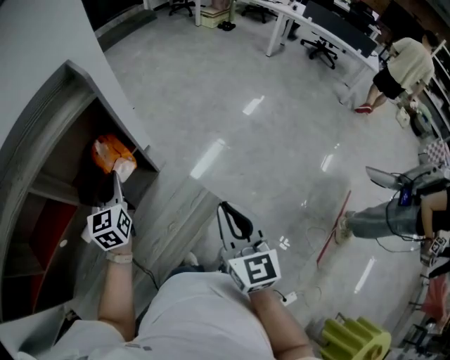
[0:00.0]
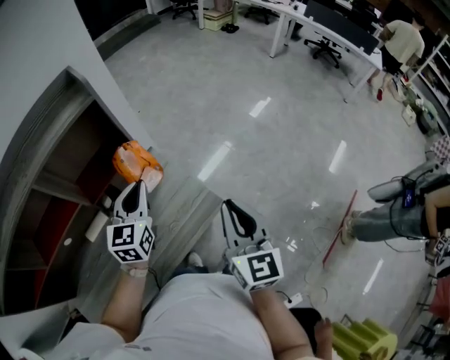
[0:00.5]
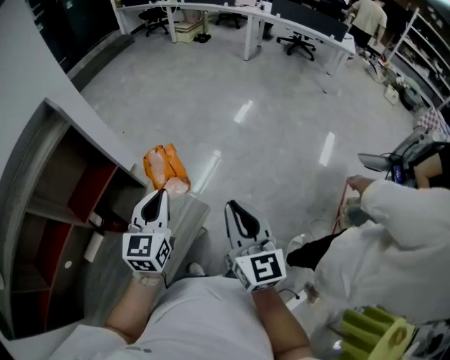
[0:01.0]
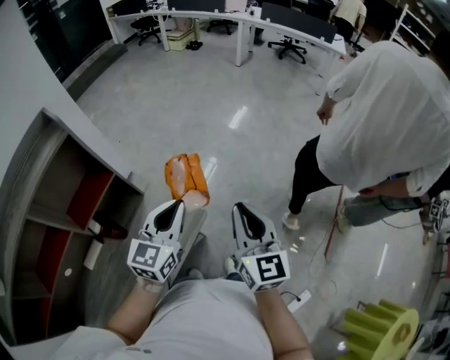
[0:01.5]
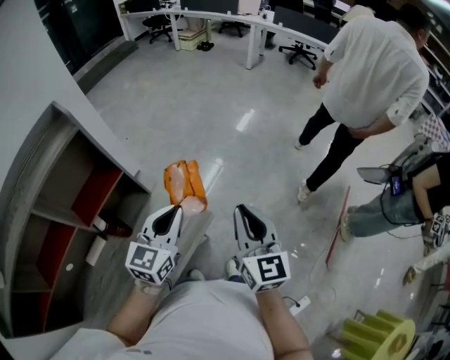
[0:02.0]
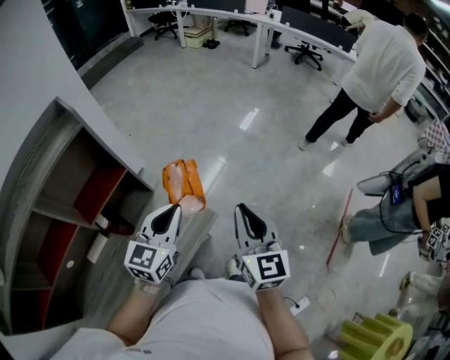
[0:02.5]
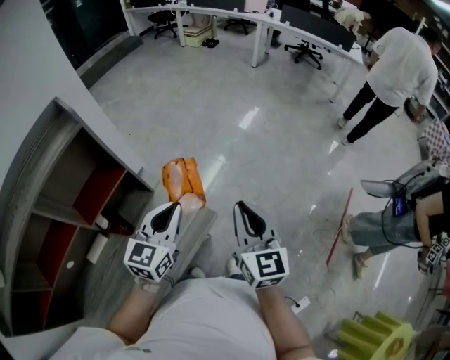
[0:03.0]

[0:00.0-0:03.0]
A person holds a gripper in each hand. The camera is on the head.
0:00.0 to 0:01.5: The left gripper moves some 30 cm, and swivels roughly 40 degrees. Meanwhile the right gripper moves approximately 10 cm.
0:01.5 to 0:03.0: The grippers move only a little.

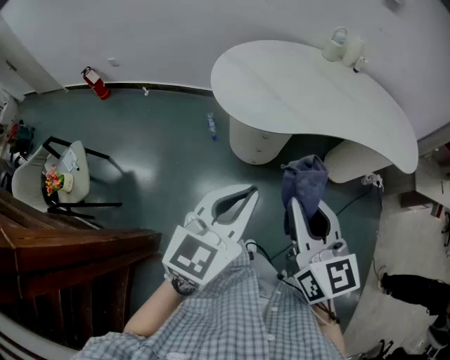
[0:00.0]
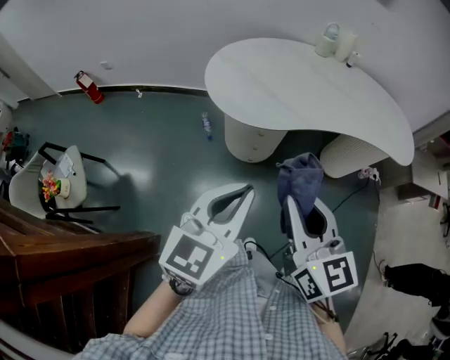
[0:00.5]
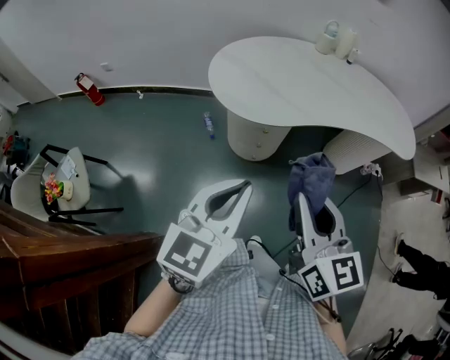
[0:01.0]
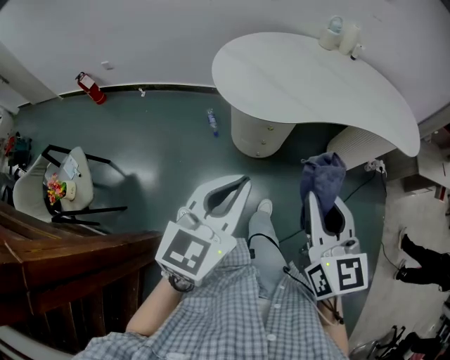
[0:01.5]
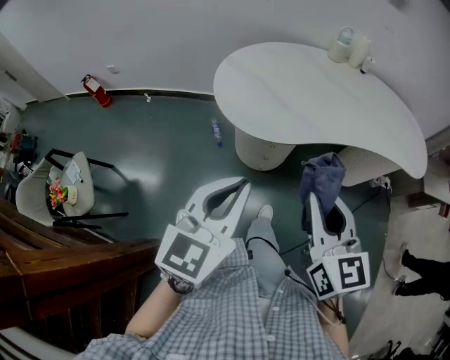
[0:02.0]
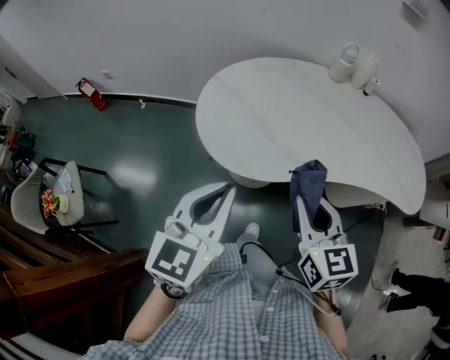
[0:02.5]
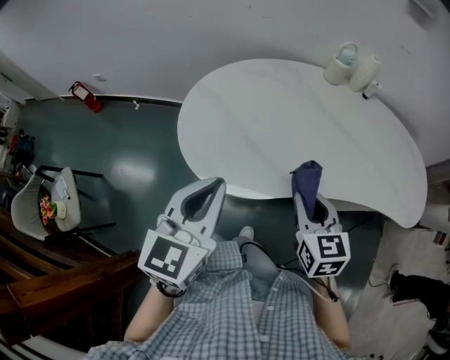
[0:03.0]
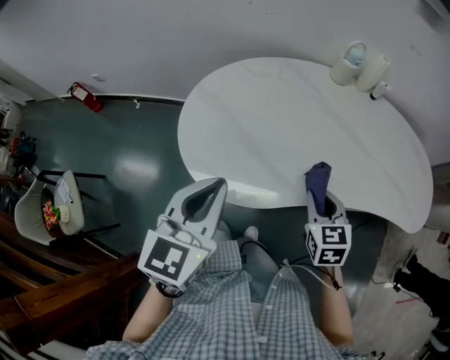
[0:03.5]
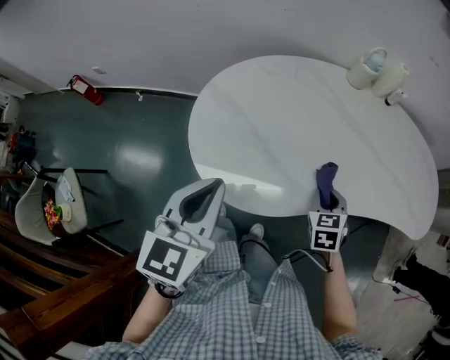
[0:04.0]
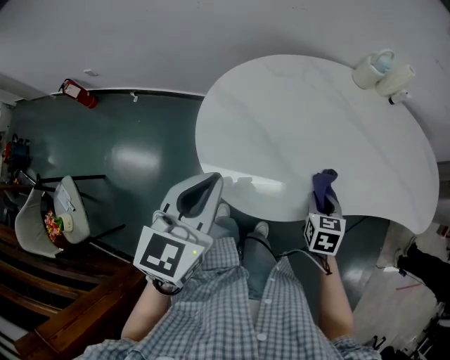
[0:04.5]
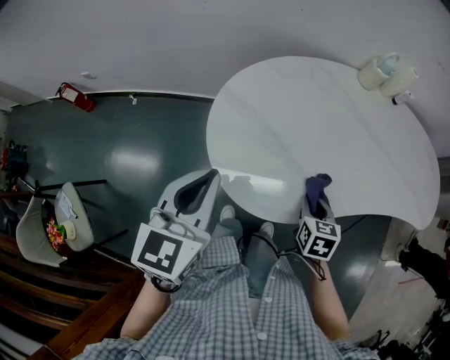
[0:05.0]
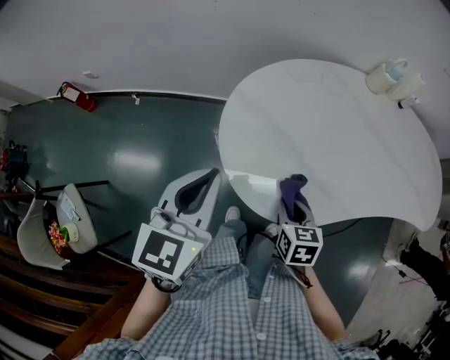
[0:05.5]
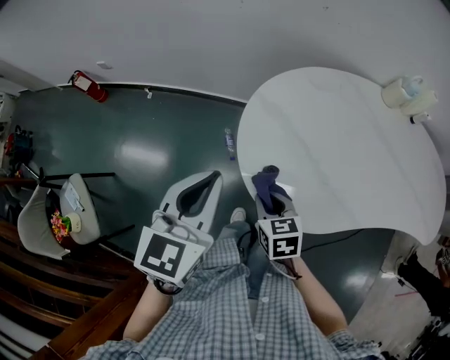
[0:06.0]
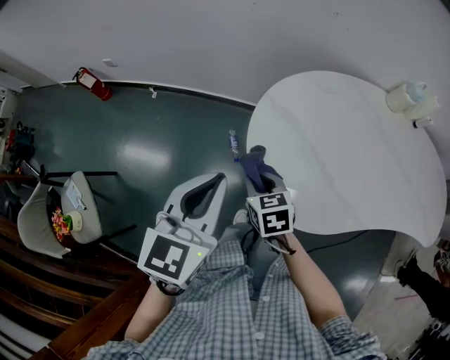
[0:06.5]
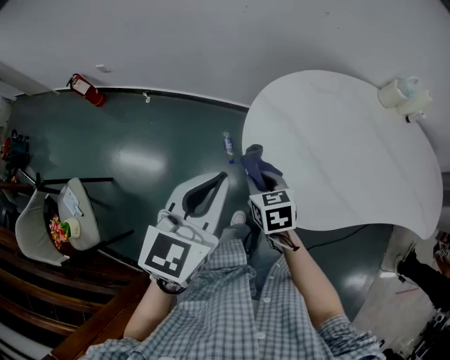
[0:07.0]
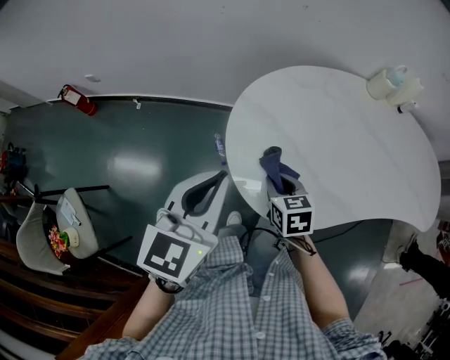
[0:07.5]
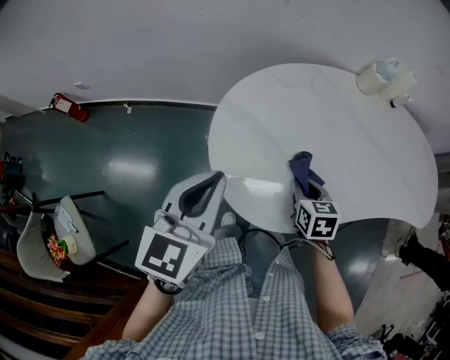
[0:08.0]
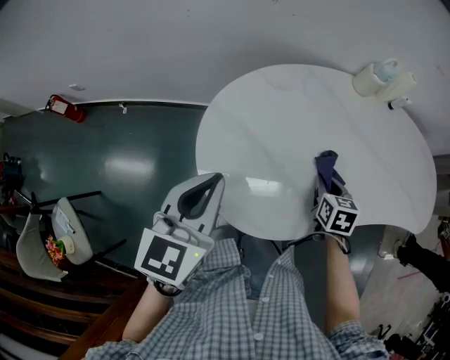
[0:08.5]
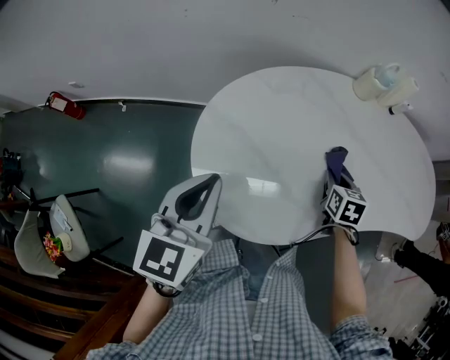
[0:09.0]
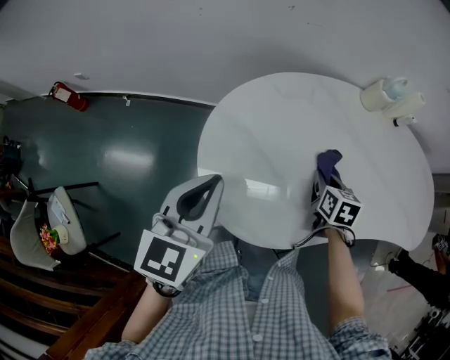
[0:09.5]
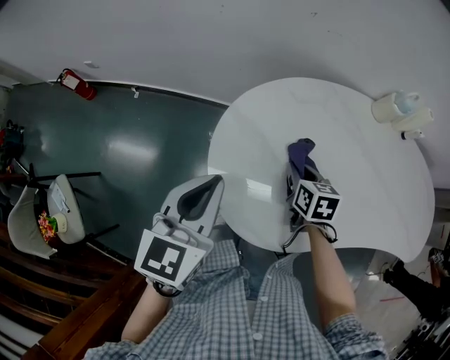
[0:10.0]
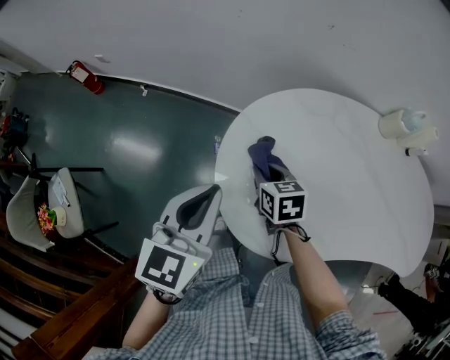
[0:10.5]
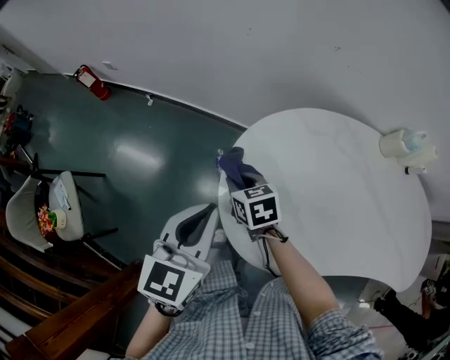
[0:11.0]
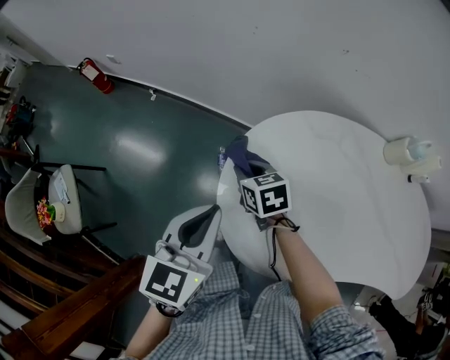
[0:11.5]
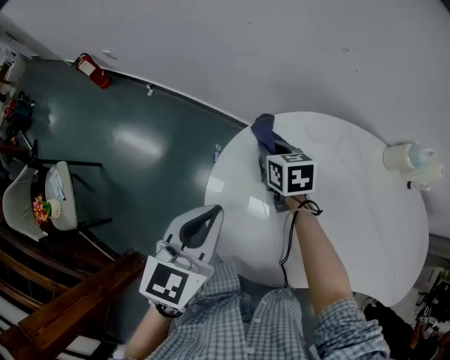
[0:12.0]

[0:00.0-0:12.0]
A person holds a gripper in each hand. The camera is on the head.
0:00.0 to 0:02.0: Both grippers travel together forward, approximately 5 cm.
0:02.0 to 0:04.0: The left gripper goes roughly 25 cm forward. The right gripper travels forward and downward by approximately 40 cm, and tilts its fingers about 40 degrees downward.
0:04.0 to 0:06.0: The right gripper heads to the left, covering approximately 35 cm, and rotates about 30 degrees, while the left gripper shifts roughly 15 cm to the left.
0:06.0 to 0:08.0: The right gripper moves to the right, some 20 cm, while the left gripper moves to the right, some 5 cm.
0:08.0 to 0:10.0: The right gripper heads forward, covering roughly 10 cm, and reaches approximately 15 cm to the right, then returns.
0:10.0 to 0:12.0: The right gripper moves forward and to the left, approximately 20 cm, and swivels some 20 degrees.

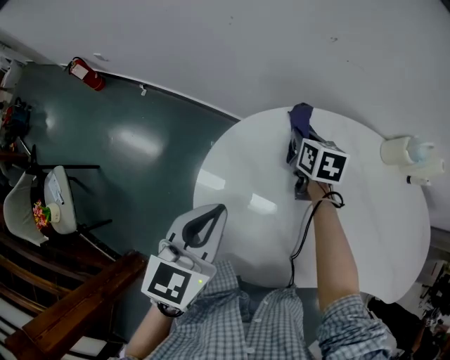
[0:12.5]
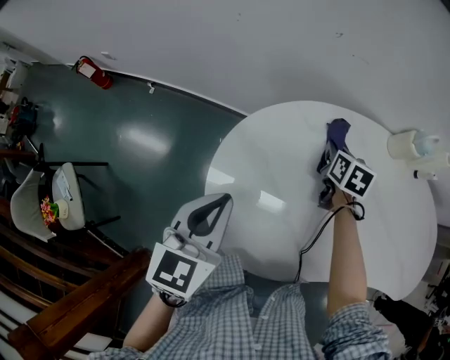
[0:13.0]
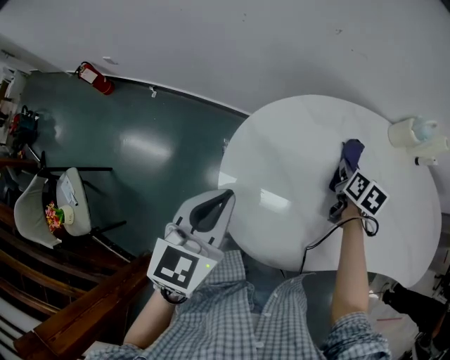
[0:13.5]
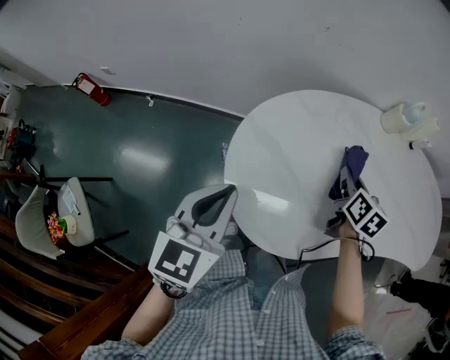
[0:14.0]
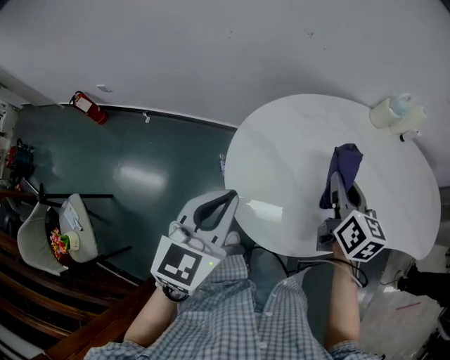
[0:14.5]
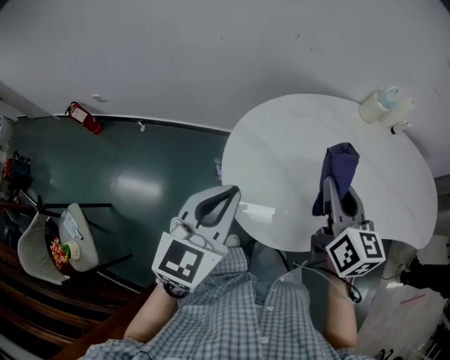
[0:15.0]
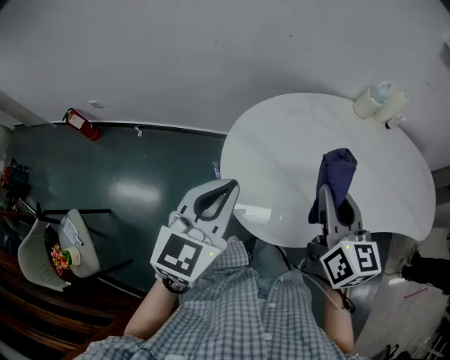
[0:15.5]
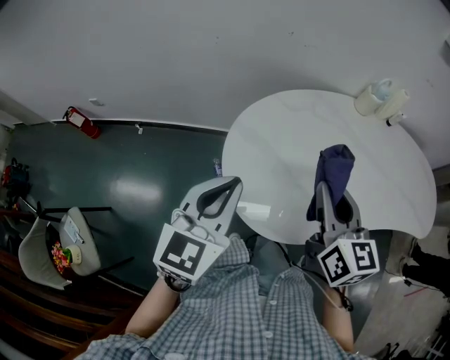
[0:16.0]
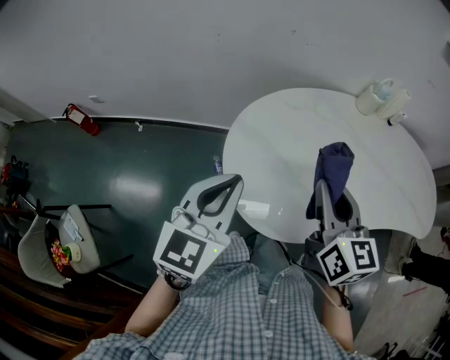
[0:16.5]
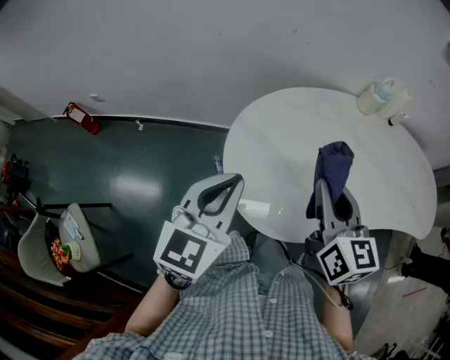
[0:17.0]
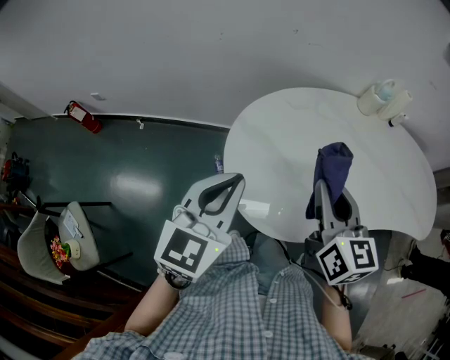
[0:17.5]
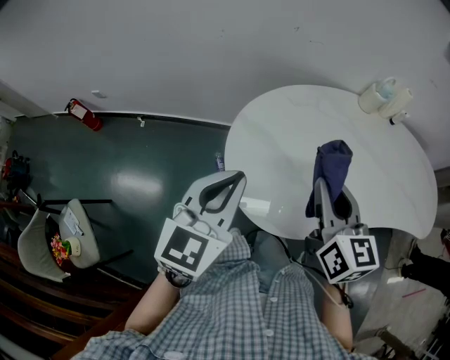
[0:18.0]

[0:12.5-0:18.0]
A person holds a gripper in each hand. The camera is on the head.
0:12.5 to 0:14.5: The left gripper is displaced backward by some 10 cm, while the right gripper moves backward and upward, roughly 25 cm, and rotates about 30 degrees.
0:14.5 to 0:16.0: The right gripper travels backward and upward by about 10 cm.
0:16.0 to 0:18.0: Both grippers stay put.

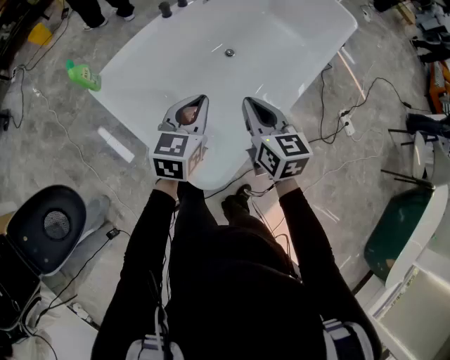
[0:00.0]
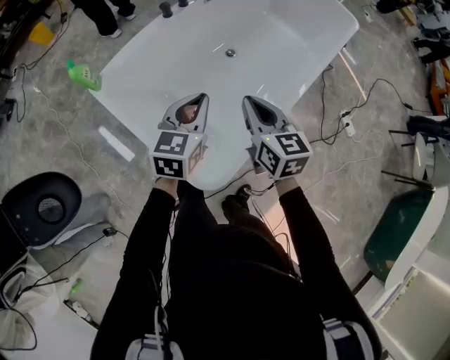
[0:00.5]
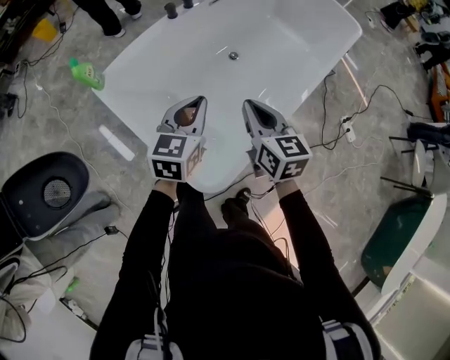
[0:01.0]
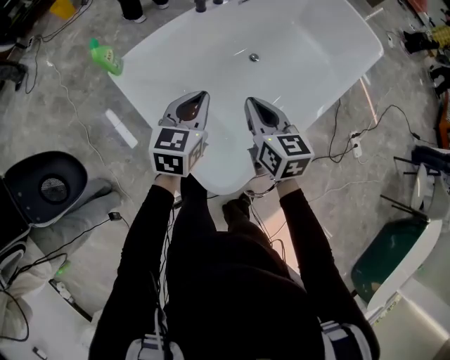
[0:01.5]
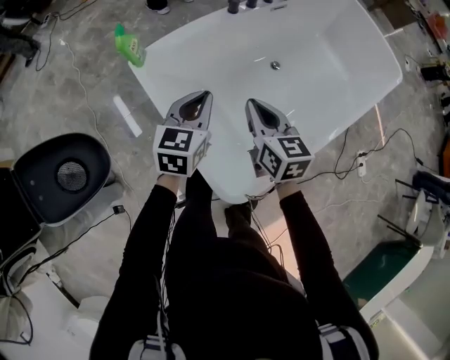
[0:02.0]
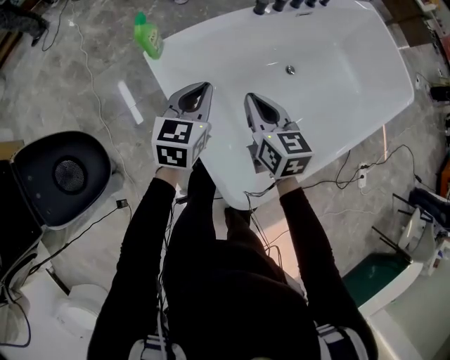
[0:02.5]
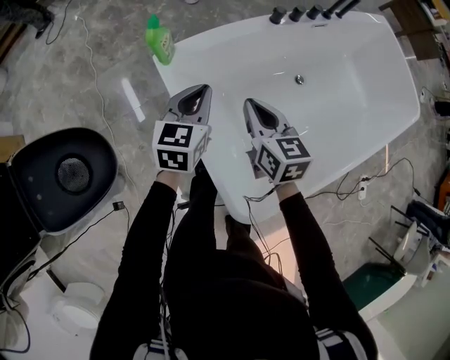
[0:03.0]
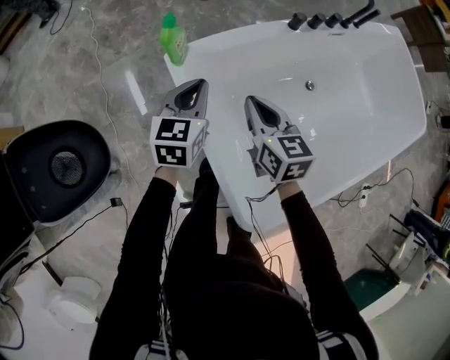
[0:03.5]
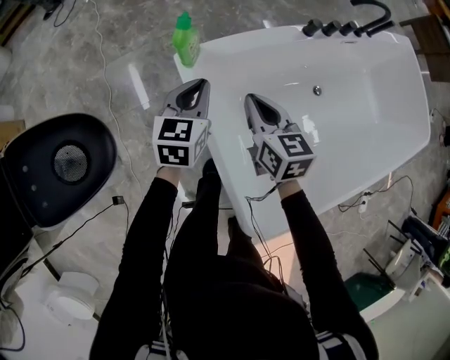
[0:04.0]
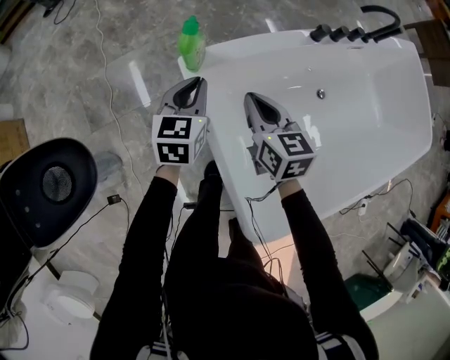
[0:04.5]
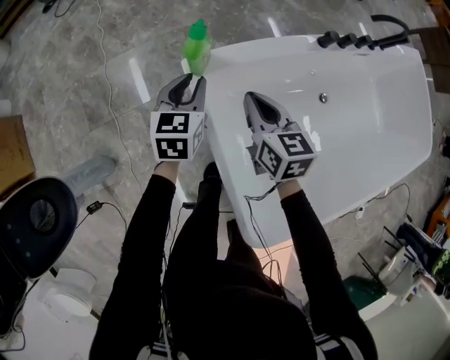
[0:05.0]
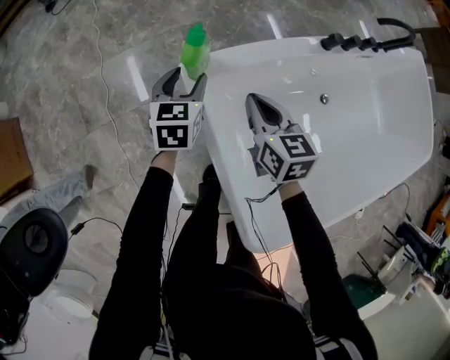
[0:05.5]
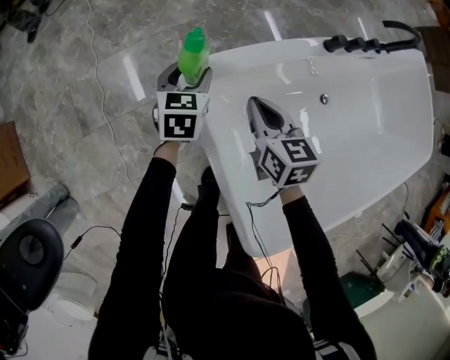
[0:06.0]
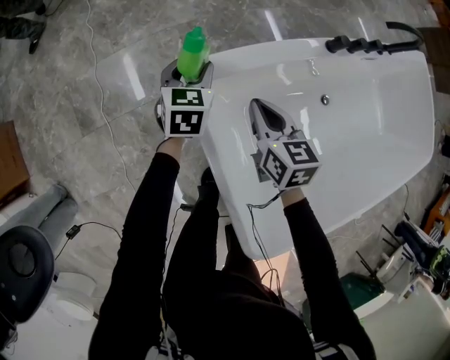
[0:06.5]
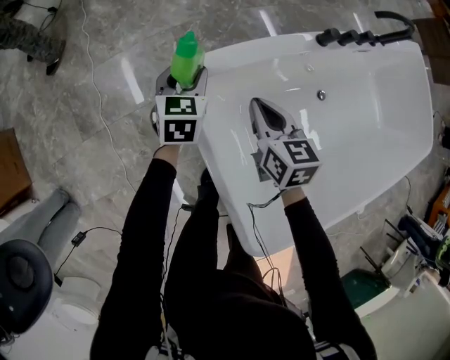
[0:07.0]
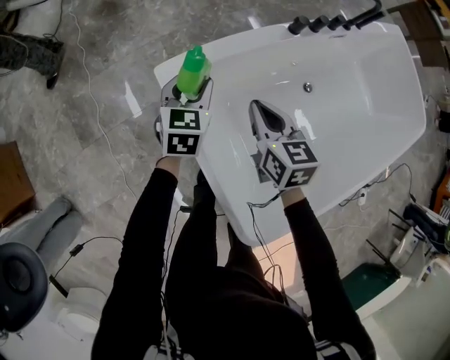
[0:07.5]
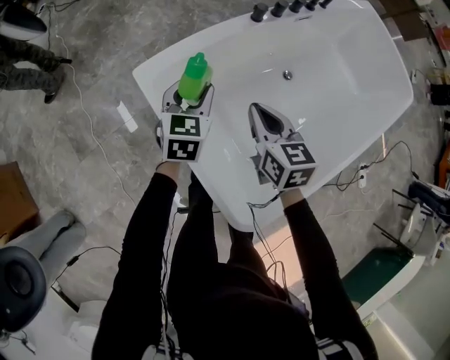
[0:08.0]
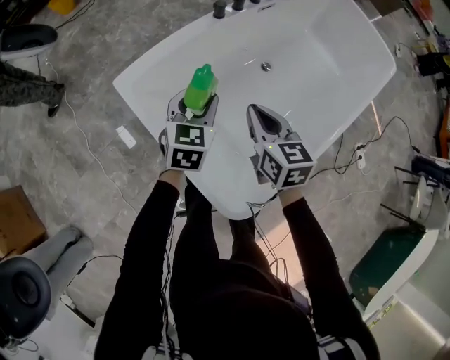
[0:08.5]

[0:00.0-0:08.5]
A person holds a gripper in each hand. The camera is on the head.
0:00.0 to 0:02.0: The right gripper is displaced to the left and forward by about 15 cm. The left gripper is displaced to the left by about 15 cm.
0:02.0 to 0:04.0: The two grippers go approximately 25 cm to the left, forward and downward.
0:04.0 to 0:06.5: The right gripper shifts about 10 cm forward and downward. The left gripper is displaced forward and downward by approximately 20 cm, and opens up.
0:06.5 to 0:08.5: Both grippers move to the right, backward and upward, some 35 cm. The left gripper changes its angle by approximately 30 degrees; the right gripper turns by approximately 20 degrees.
